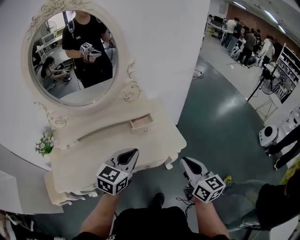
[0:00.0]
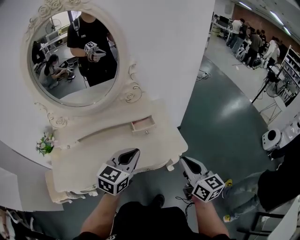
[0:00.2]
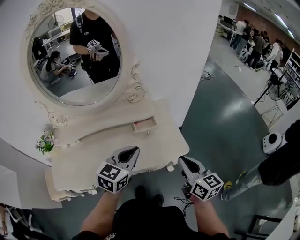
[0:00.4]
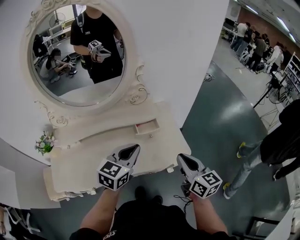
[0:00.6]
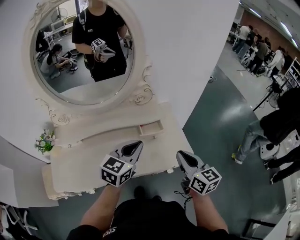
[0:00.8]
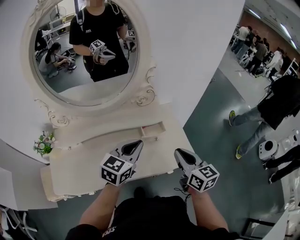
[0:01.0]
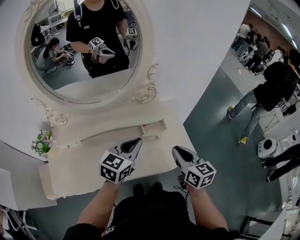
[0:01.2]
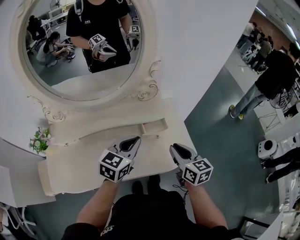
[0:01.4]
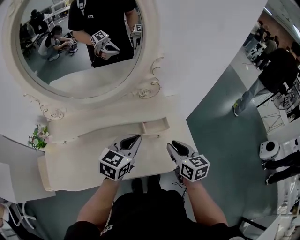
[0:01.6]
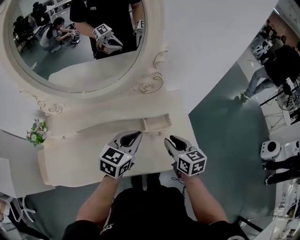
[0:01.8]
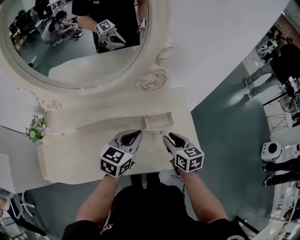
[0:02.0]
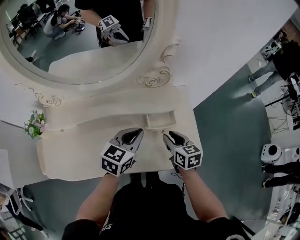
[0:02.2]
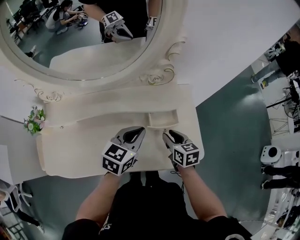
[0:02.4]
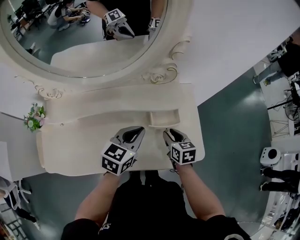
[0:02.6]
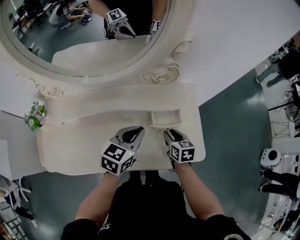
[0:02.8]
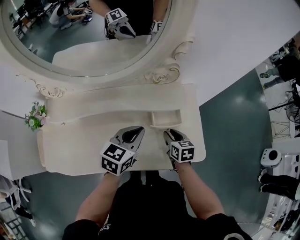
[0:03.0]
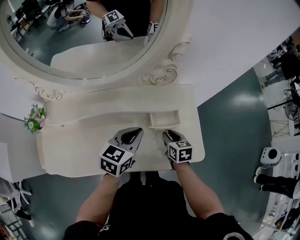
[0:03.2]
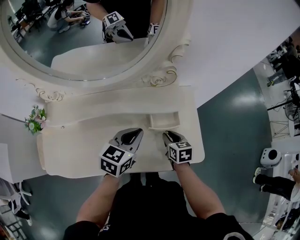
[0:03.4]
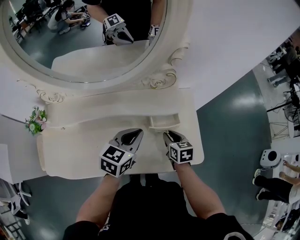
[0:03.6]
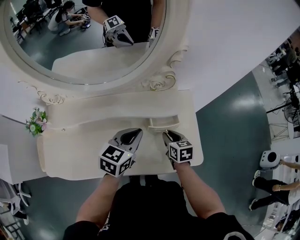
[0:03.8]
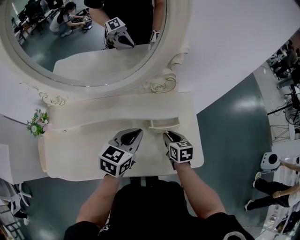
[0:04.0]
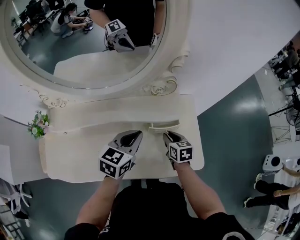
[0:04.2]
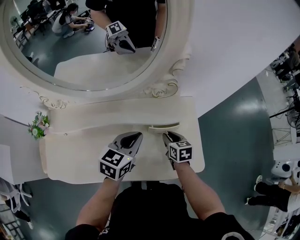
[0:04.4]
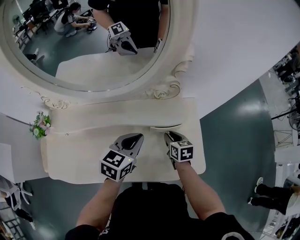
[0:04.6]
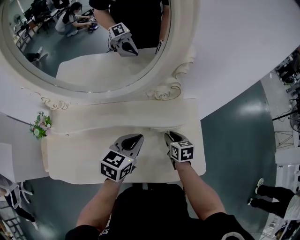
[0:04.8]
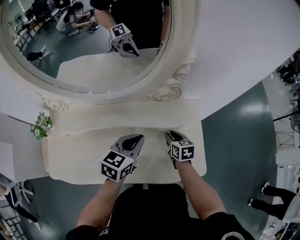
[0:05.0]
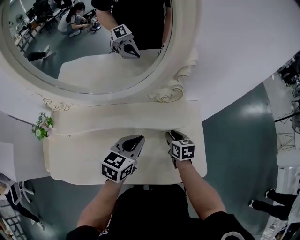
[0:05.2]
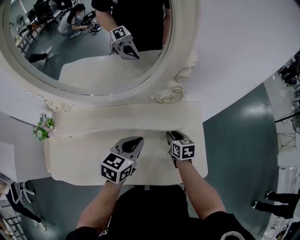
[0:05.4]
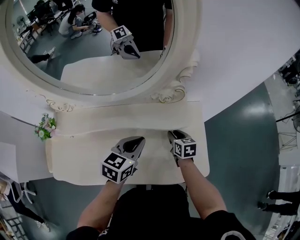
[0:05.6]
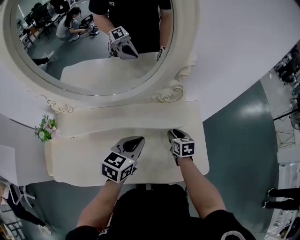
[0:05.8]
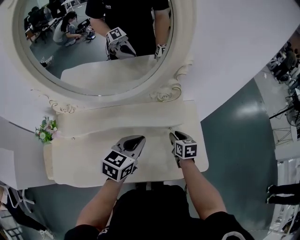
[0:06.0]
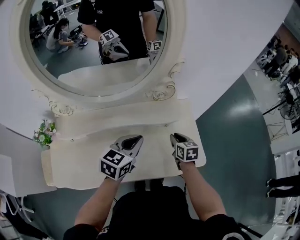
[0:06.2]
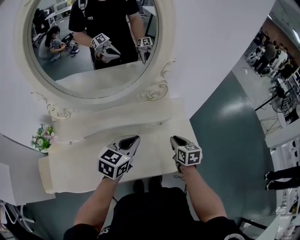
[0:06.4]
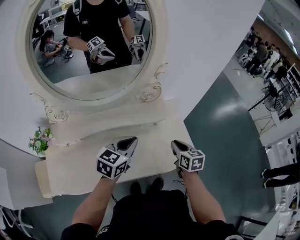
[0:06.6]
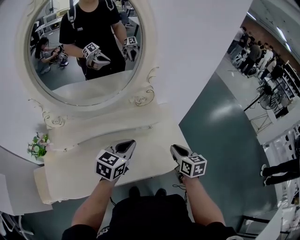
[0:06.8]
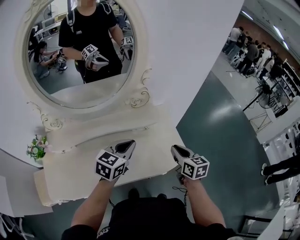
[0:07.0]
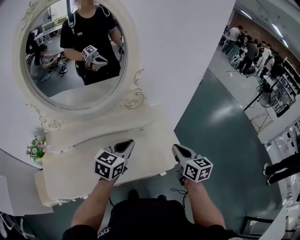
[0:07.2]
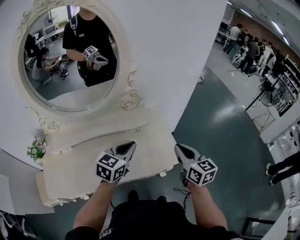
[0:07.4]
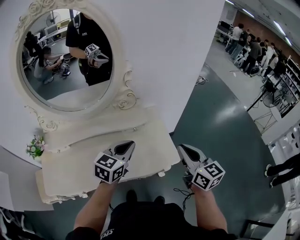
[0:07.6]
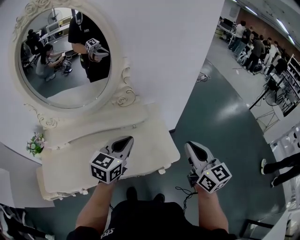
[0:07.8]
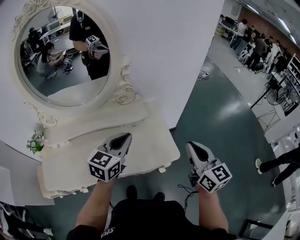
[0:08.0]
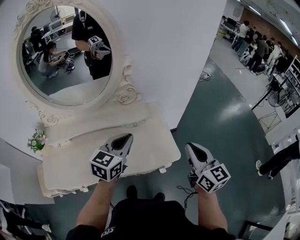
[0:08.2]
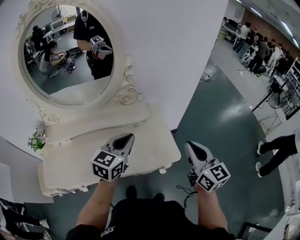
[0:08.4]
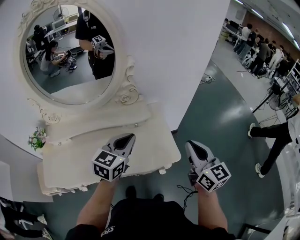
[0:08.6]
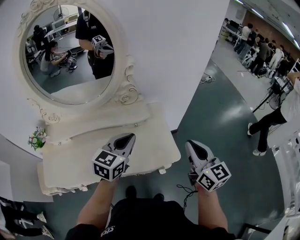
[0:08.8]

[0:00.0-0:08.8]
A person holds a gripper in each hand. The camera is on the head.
0:00.0 to 0:01.4: Both grippers travel together forward and to the left, about 20 cm.
0:01.4 to 0:03.0: The left gripper moves downward, about 10 cm, while the right gripper is displaced downward and forward by approximately 20 cm, and swivels approximately 20 degrees.
0:03.0 to 0:04.4: The right gripper shifts by about 5 cm.
0:04.4 to 0:05.8: The grippers stay close to where they were, moving slightly.
0:05.8 to 0:07.4: The left gripper heads to the right, backward and upward, covering about 15 cm. The right gripper is displaced upward, backward and to the right by about 35 cm, changes its angle by about 30 degrees, and closes up.
0:07.4 to 0:08.8: The left gripper shifts by roughly 5 cm. Meanwhile the right gripper travels upward and to the right by approximately 10 cm.

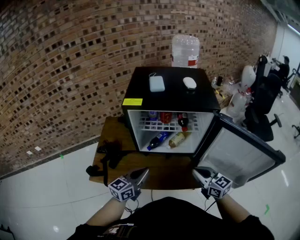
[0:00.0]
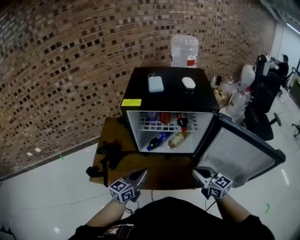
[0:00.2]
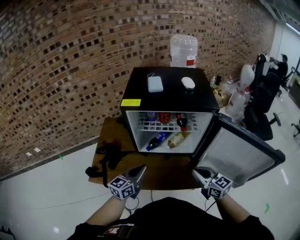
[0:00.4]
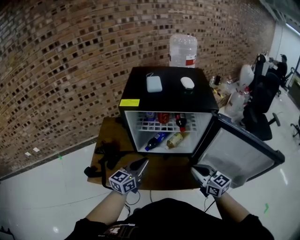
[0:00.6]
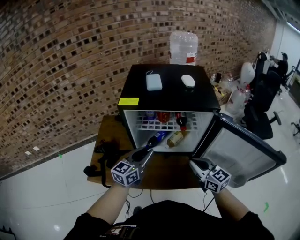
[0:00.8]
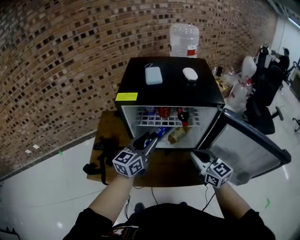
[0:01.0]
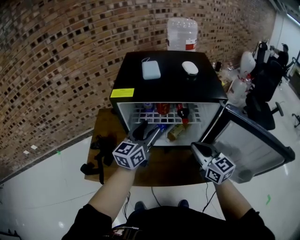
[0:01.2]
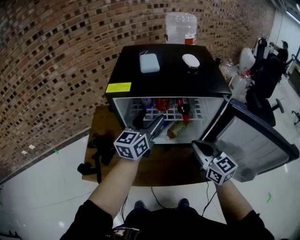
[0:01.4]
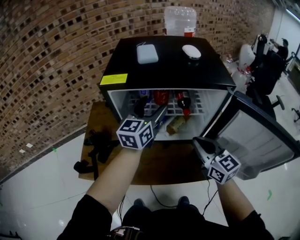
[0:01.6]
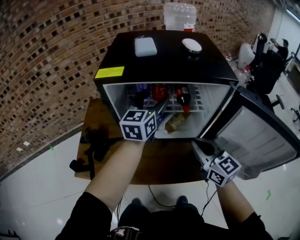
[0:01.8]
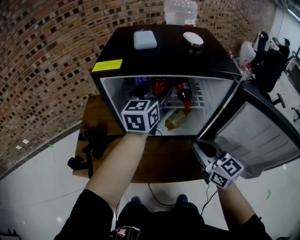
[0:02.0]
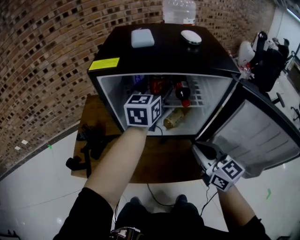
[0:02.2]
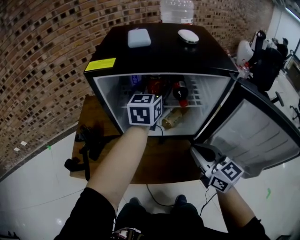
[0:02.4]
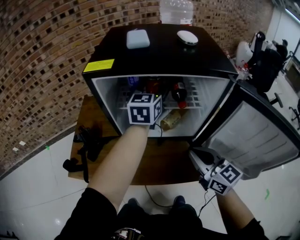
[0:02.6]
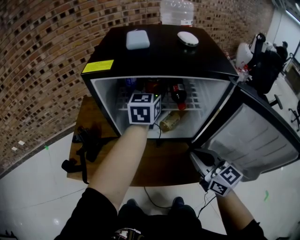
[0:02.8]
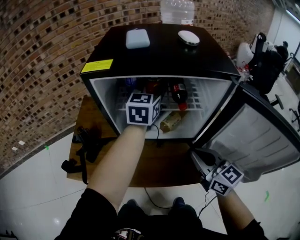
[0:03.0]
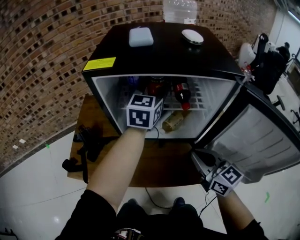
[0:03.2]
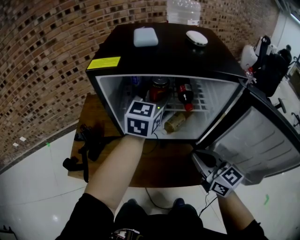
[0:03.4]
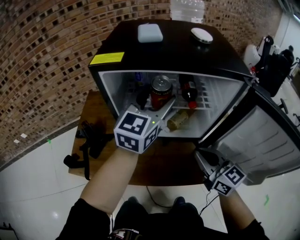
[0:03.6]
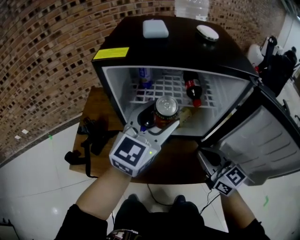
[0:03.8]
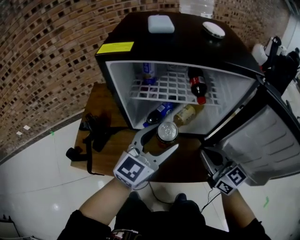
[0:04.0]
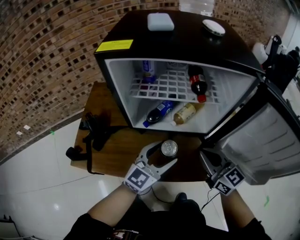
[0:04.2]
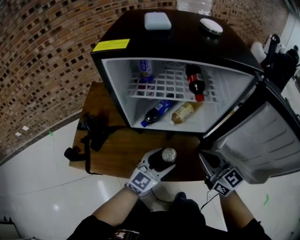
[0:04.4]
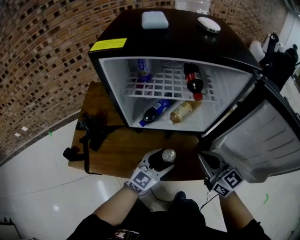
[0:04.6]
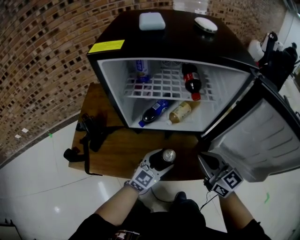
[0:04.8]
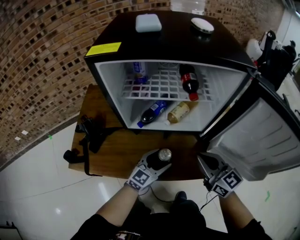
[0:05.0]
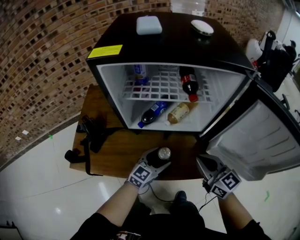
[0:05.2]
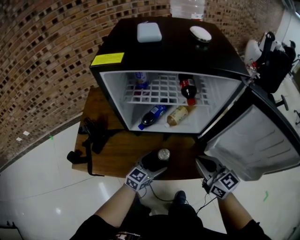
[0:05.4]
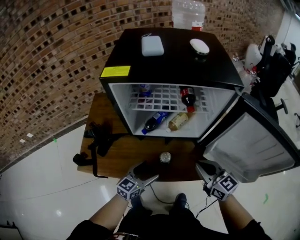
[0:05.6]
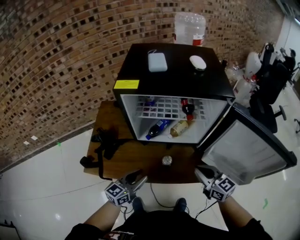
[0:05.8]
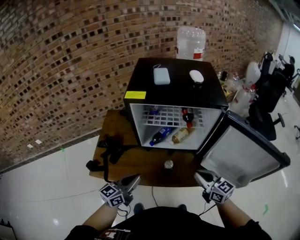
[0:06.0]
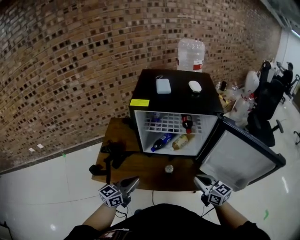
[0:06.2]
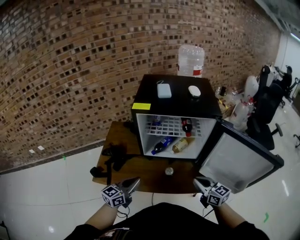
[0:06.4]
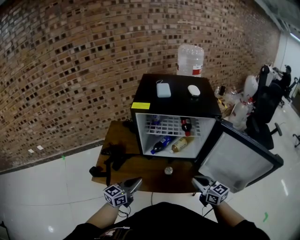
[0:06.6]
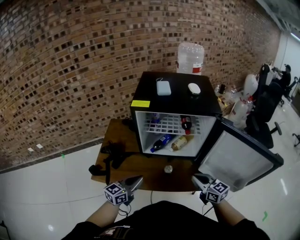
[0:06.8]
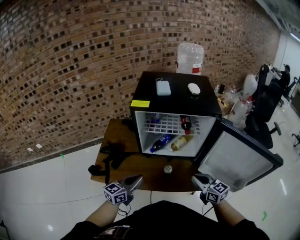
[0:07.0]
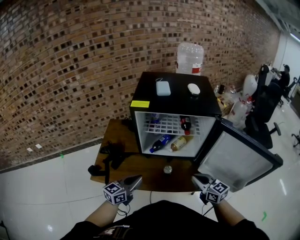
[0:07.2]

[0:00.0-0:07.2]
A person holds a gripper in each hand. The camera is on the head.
0:00.0 to 0:01.4: The right gripper goes approximately 10 cm forward, while the left gripper heads forward, covering some 20 cm, and opens its fingers.
0:01.4 to 0:02.8: The right gripper shifts some 5 cm downward, while the left gripper travels forward and to the right by approximately 10 cm.
0:02.8 to 0:04.4: The left gripper is displaced backward and downward by some 35 cm, and turns by about 30 degrees. Meanwhile the right gripper shifts some 5 cm downward.
0:04.4 to 0:05.8: The left gripper is displaced to the left, backward and upward by roughly 15 cm, swivels roughly 20 degrees, and closes up. The right gripper heads backward and upward, covering some 10 cm.
0:05.8 to 0:07.2: The left gripper moves upward, roughly 10 cm, and closes up.

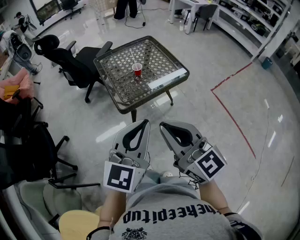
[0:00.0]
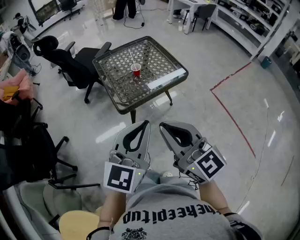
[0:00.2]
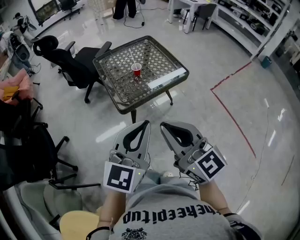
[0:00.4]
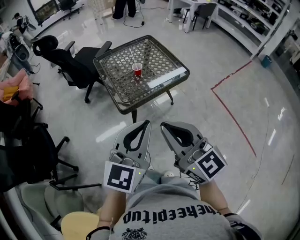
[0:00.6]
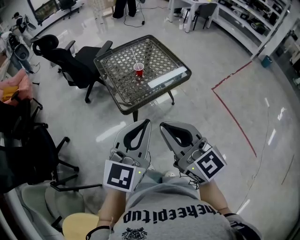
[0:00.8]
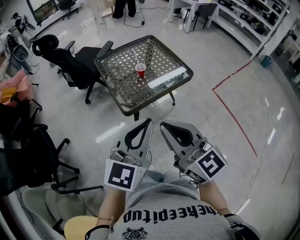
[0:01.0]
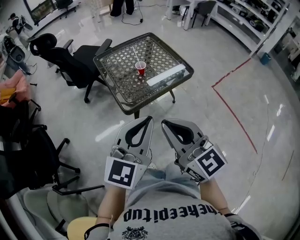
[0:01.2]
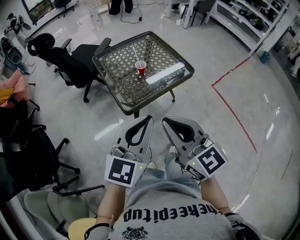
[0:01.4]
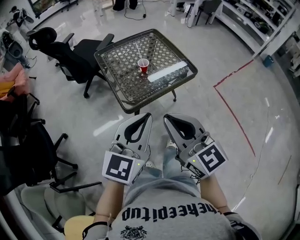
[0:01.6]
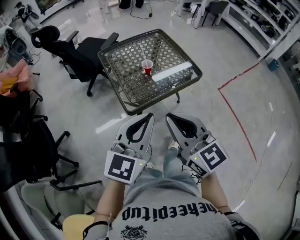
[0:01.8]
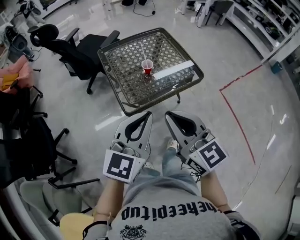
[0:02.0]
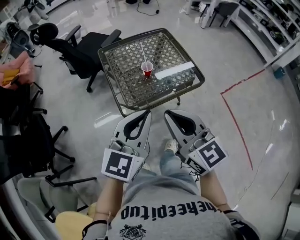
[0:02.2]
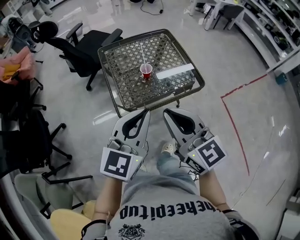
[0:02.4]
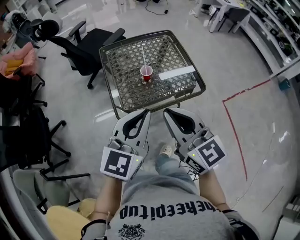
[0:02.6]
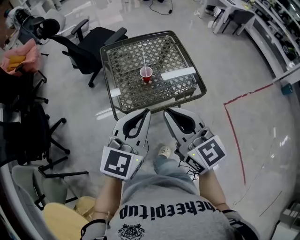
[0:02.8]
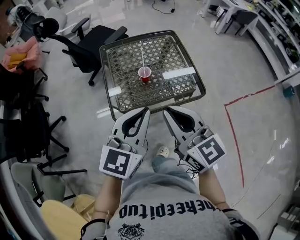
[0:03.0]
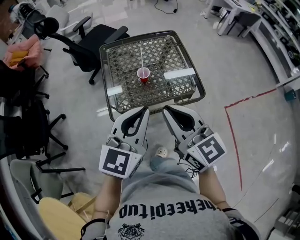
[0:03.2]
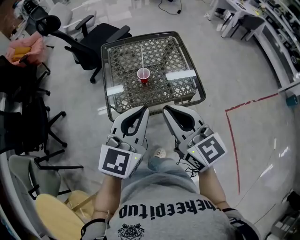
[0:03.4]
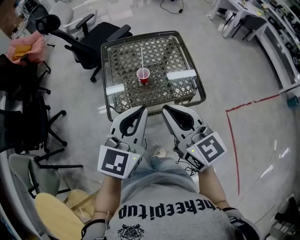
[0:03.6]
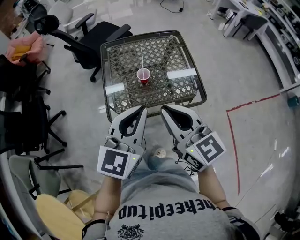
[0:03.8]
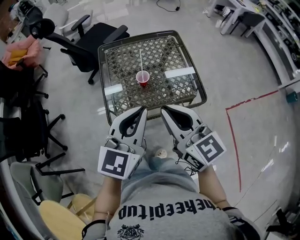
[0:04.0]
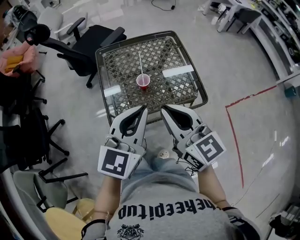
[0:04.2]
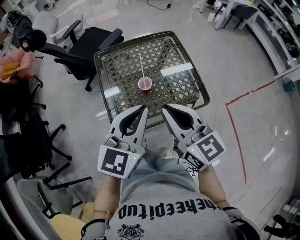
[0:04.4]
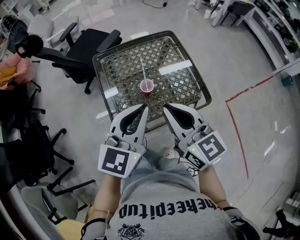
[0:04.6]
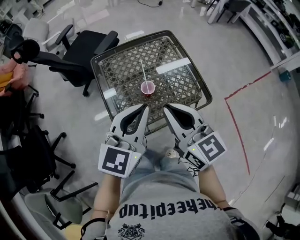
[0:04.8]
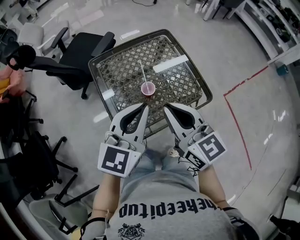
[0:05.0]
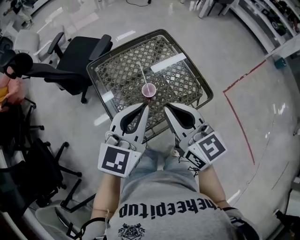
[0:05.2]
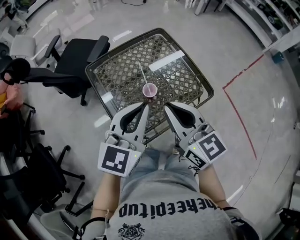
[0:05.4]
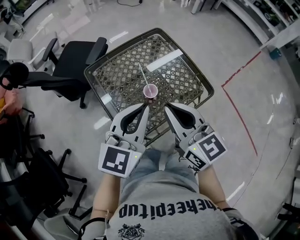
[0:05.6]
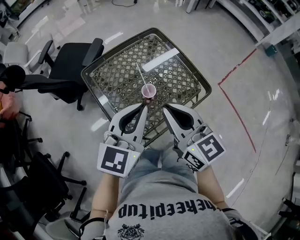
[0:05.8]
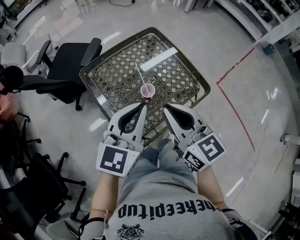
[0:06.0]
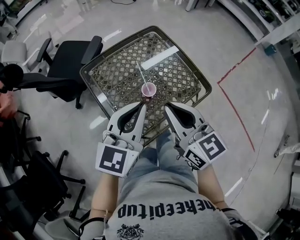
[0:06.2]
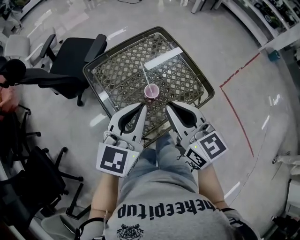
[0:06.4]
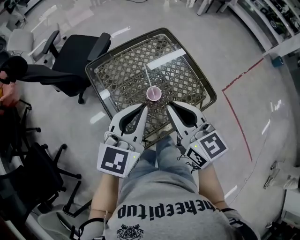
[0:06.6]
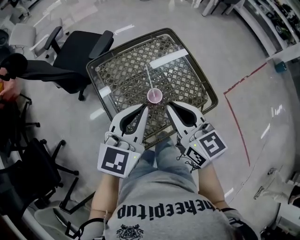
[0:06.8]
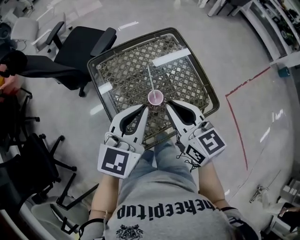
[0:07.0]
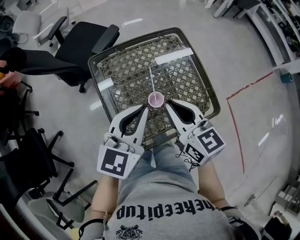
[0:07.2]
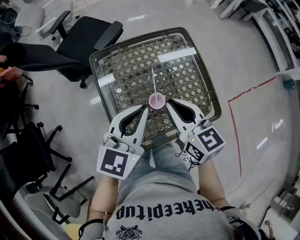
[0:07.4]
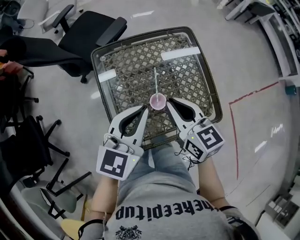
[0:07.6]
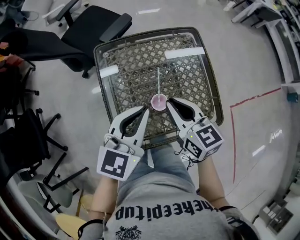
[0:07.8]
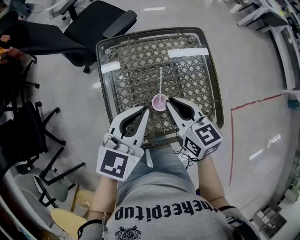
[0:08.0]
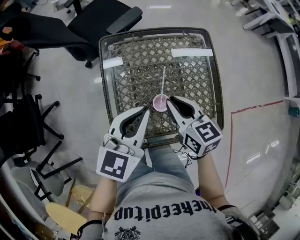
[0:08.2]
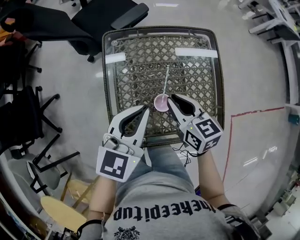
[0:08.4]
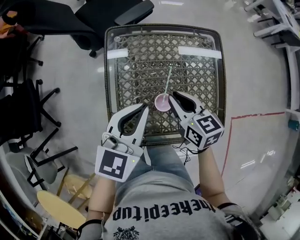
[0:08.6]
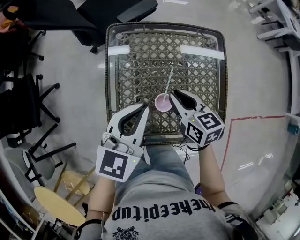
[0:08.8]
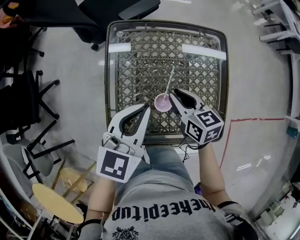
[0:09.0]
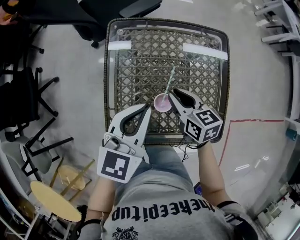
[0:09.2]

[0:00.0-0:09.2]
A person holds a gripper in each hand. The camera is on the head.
0:00.0 to 0:01.6: The two grippers go approximately 5 cm forward.
0:01.6 to 0:03.0: Both grippers move forward and to the right, about 20 cm.
0:03.0 to 0:04.6: The grippers both shift forward by roughly 15 cm.
0:04.6 to 0:06.2: The left gripper heads to the left and forward, covering approximately 10 cm. The right gripper moves to the left, approximately 5 cm.
0:06.2 to 0:07.6: The left gripper shifts approximately 10 cm forward. The right gripper heads forward and downward, covering about 15 cm, and turns by approximately 20 degrees.
0:07.6 to 0:09.2: The left gripper is displaced downward by some 5 cm, while the right gripper moves downward and forward, roughly 15 cm, and turns by roughly 20 degrees.
